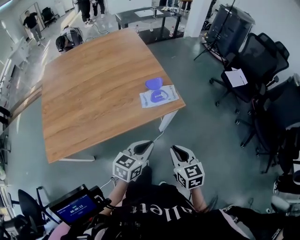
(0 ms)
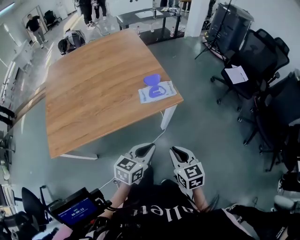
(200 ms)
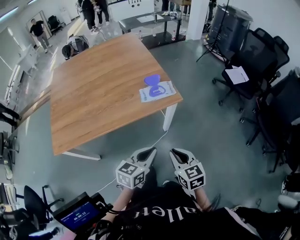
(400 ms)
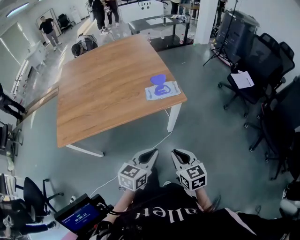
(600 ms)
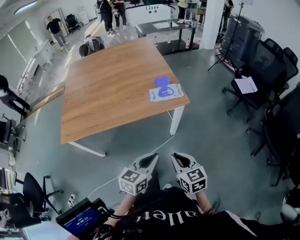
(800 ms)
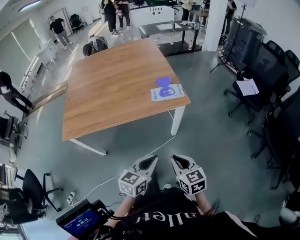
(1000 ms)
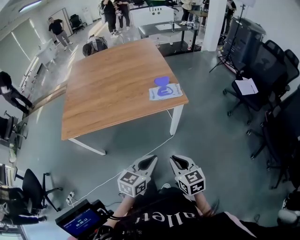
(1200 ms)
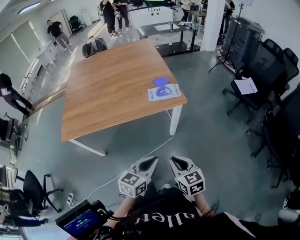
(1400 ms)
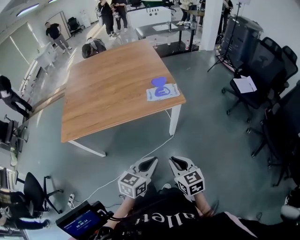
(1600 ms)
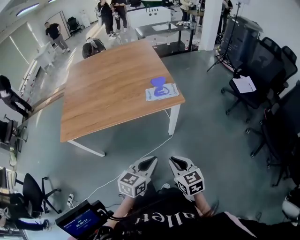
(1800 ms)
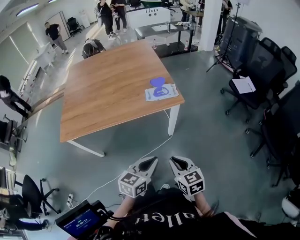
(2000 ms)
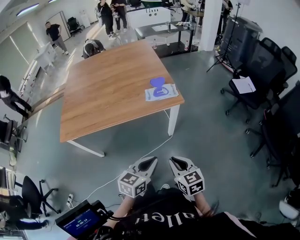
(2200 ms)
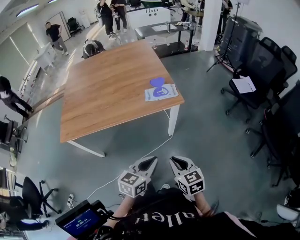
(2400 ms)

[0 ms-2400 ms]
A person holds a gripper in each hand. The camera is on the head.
0 ms to 1200 ms: Both grippers move backward, approximately 15 cm.
1200 ms to 2400 ms: There are only small adjustments of the grippers.

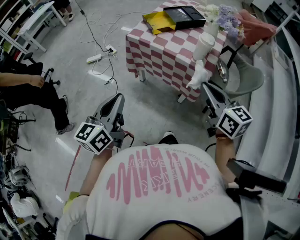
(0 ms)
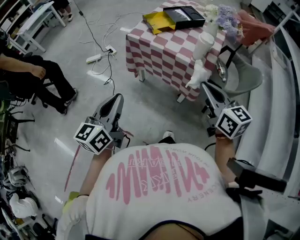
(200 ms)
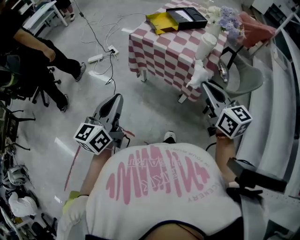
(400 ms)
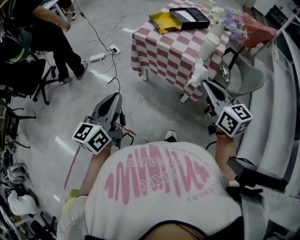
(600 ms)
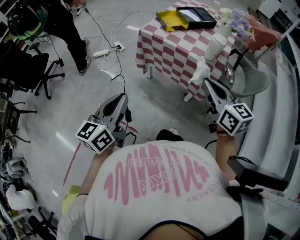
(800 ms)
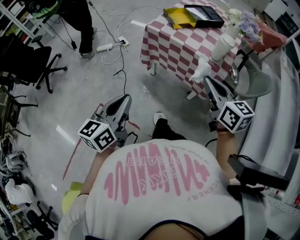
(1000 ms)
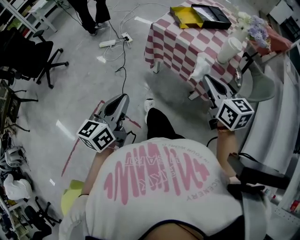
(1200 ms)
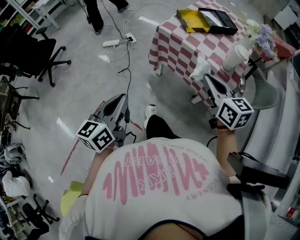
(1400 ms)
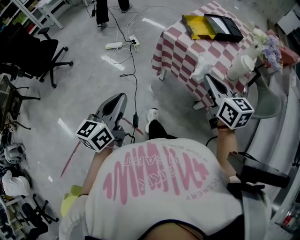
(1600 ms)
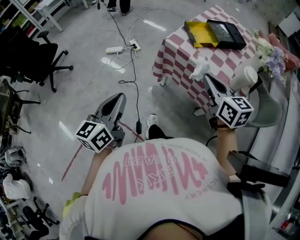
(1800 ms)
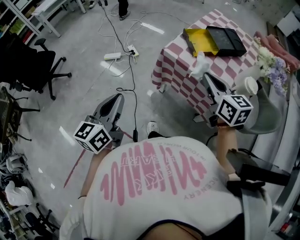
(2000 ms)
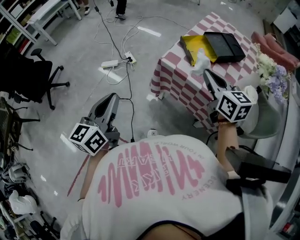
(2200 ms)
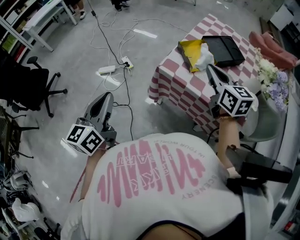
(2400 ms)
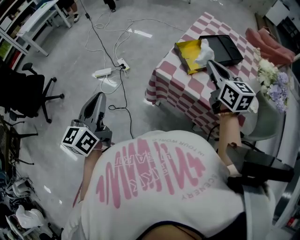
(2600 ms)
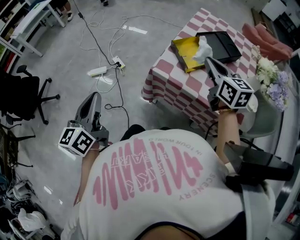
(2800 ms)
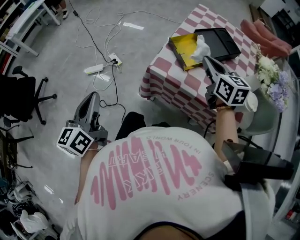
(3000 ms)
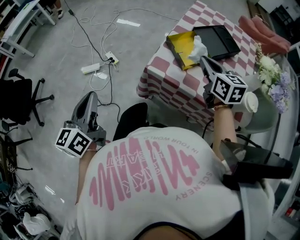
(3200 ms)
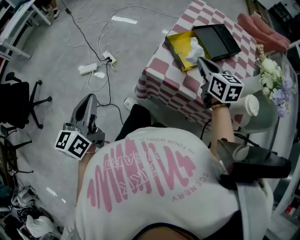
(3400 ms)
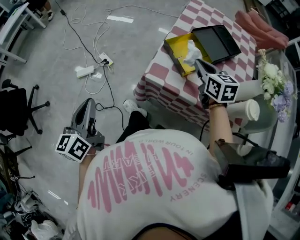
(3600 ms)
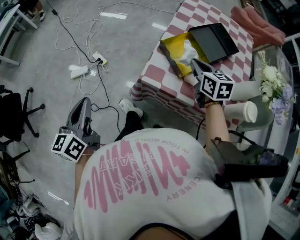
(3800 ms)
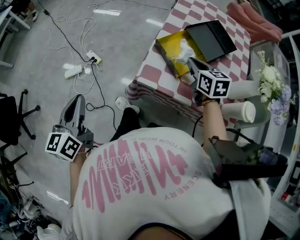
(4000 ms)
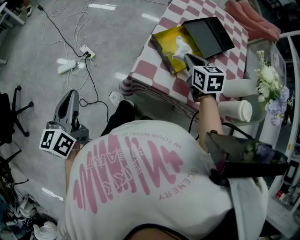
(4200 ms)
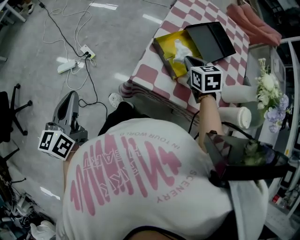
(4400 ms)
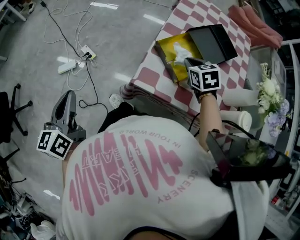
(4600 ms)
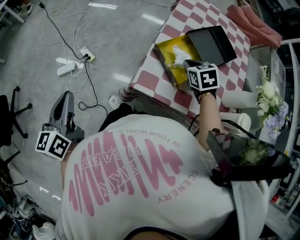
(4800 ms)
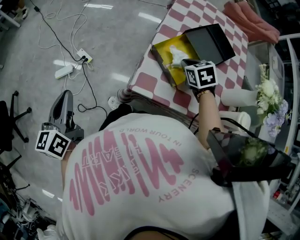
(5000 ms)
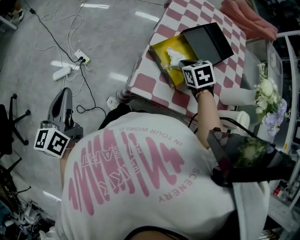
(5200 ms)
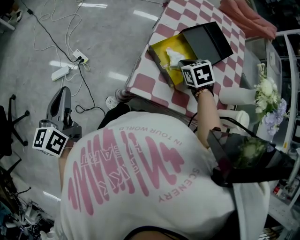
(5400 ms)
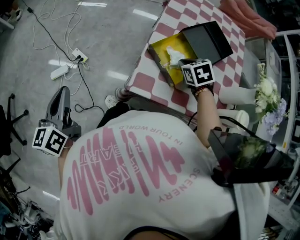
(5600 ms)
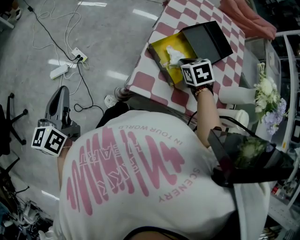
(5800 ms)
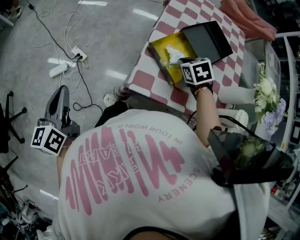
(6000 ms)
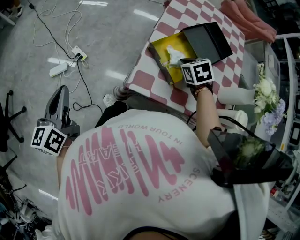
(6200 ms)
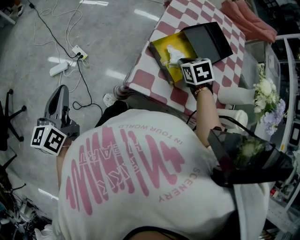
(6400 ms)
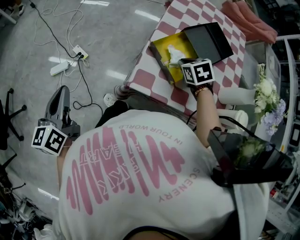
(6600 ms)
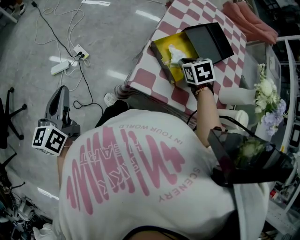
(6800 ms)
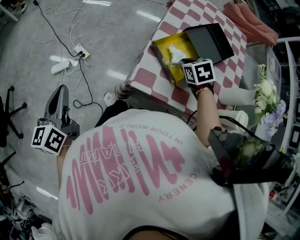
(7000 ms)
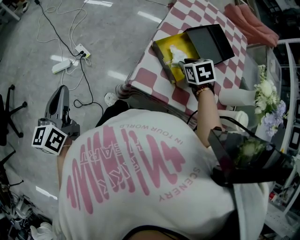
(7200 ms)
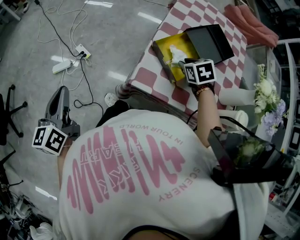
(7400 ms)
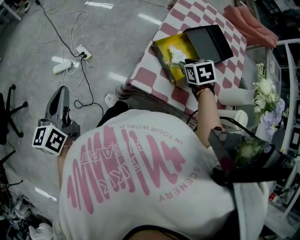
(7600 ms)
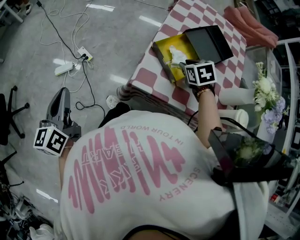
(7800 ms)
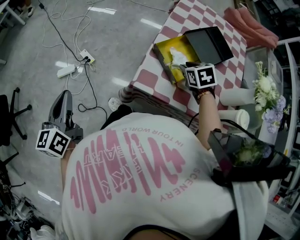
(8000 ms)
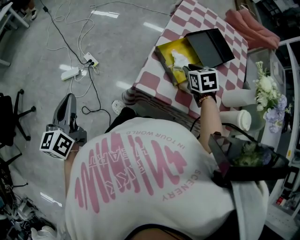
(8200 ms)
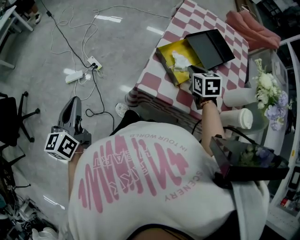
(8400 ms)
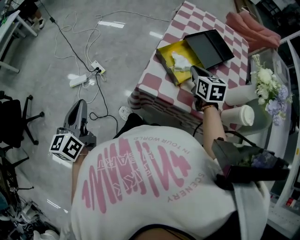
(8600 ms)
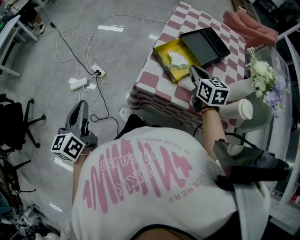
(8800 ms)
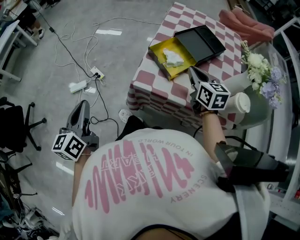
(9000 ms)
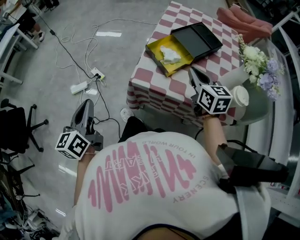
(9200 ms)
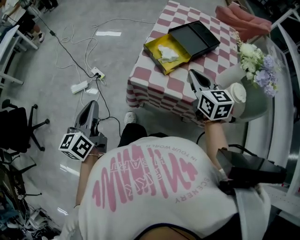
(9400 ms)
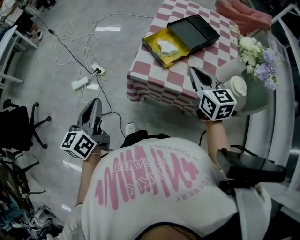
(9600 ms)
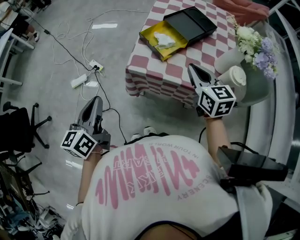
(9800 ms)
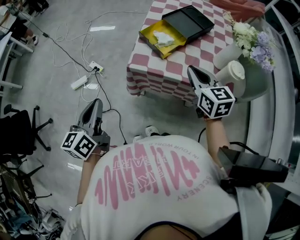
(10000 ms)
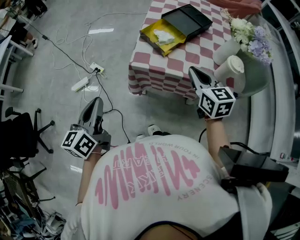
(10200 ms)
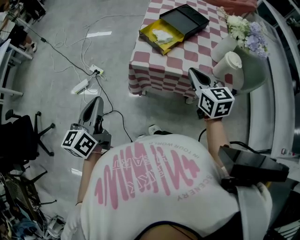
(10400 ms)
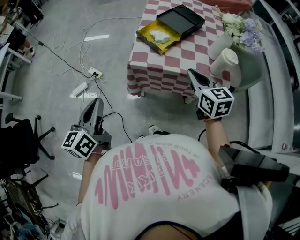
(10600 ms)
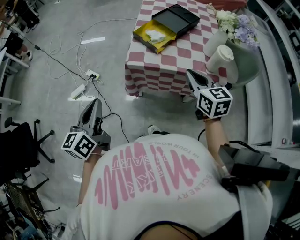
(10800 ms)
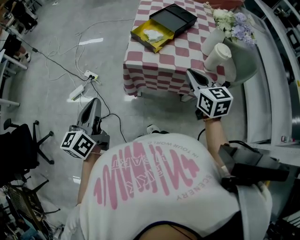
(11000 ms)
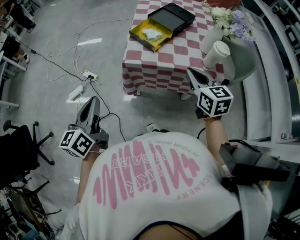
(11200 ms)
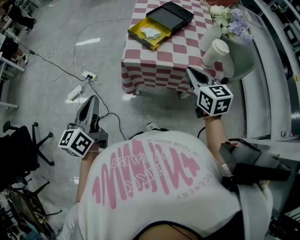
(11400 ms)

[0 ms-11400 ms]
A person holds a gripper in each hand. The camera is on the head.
0 ms to 1400 ms: The left gripper heads to the left, covering about 10 cm. Meanwhile the right gripper goes roughly 15 cm to the left and forward.
1400 ms to 2800 ms: The two grippers go some 35 cm forward.
2800 ms to 4200 ms: The right gripper heads downward and forward, covering approximately 20 cm, and swivels some 30 degrees. The left gripper moves forward and downward, some 15 cm.
4200 ms to 5600 ms: The right gripper shifts approximately 5 cm downward, and changes its angle by some 20 degrees, while the left gripper goes approximately 10 cm forward.
5600 ms to 7200 ms: The left gripper moves backward, approximately 5 cm, while the right gripper opens up.
7200 ms to 8600 ms: The left gripper shifts approximately 5 cm backward, while the right gripper is displaced upward by approximately 5 cm, and rotates approximately 30 degrees.
8600 ms to 10000 ms: The right gripper is displaced backward and upward by approximately 20 cm, while the left gripper heads backward and to the right, covering approximately 15 cm.
10000 ms to 11400 ms: The left gripper moves roughly 5 cm. The right gripper is displaced backward by about 10 cm.

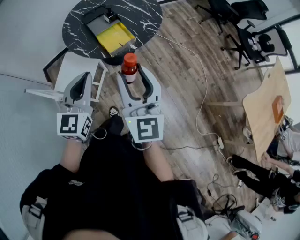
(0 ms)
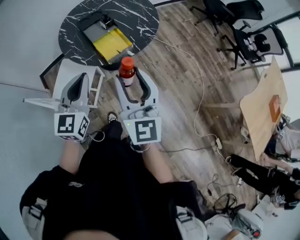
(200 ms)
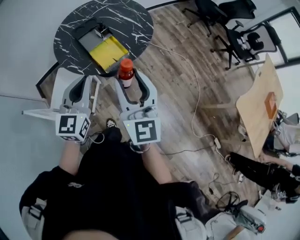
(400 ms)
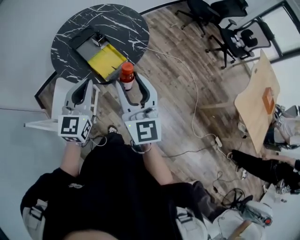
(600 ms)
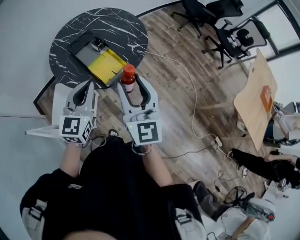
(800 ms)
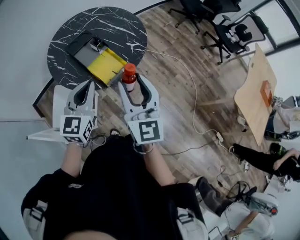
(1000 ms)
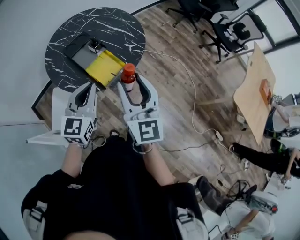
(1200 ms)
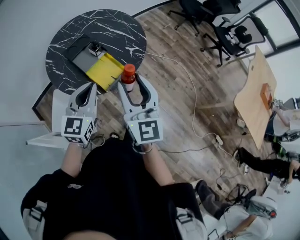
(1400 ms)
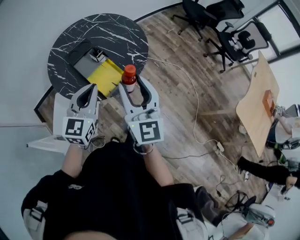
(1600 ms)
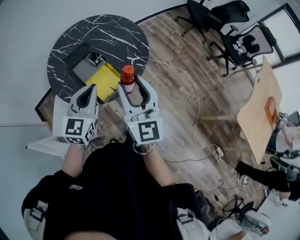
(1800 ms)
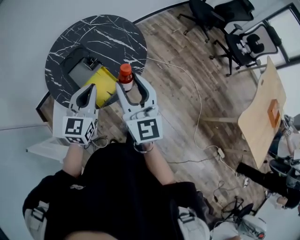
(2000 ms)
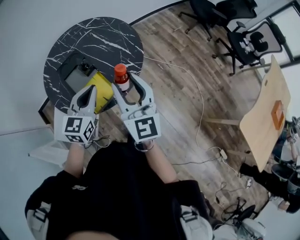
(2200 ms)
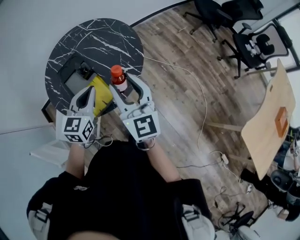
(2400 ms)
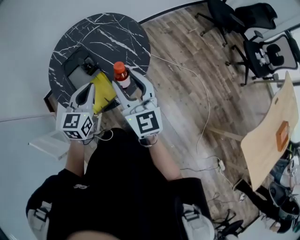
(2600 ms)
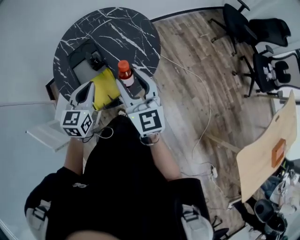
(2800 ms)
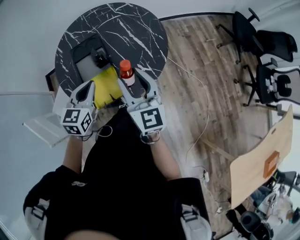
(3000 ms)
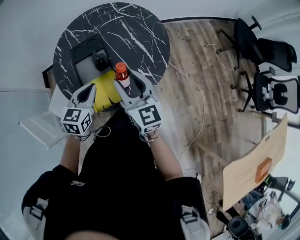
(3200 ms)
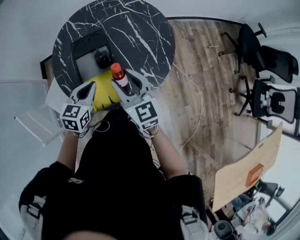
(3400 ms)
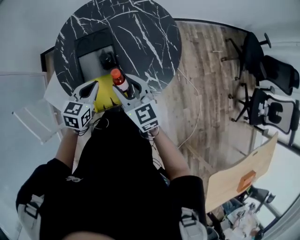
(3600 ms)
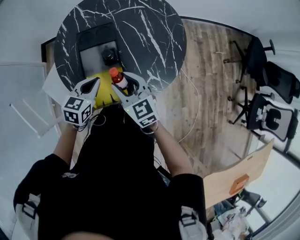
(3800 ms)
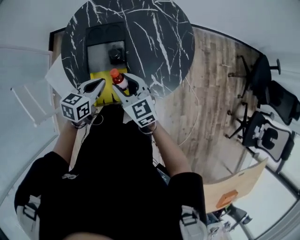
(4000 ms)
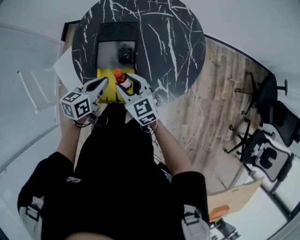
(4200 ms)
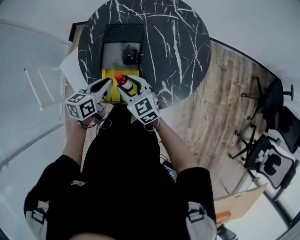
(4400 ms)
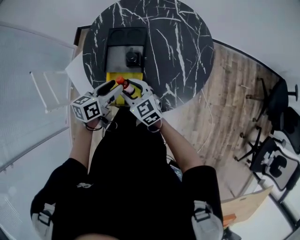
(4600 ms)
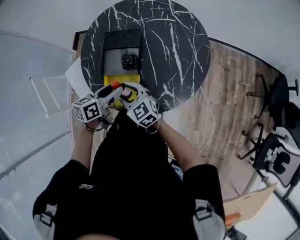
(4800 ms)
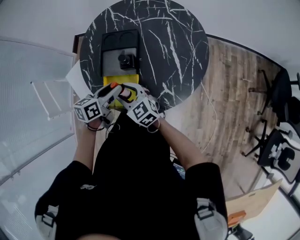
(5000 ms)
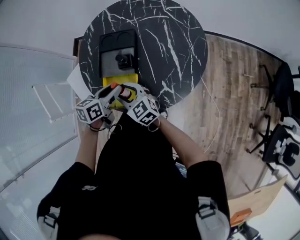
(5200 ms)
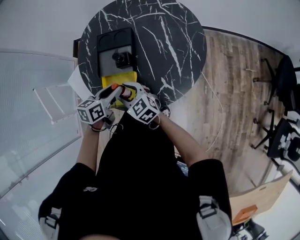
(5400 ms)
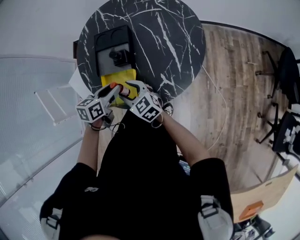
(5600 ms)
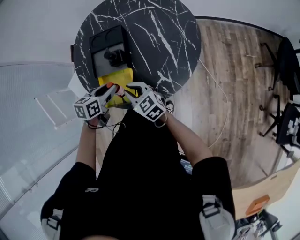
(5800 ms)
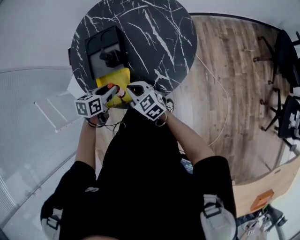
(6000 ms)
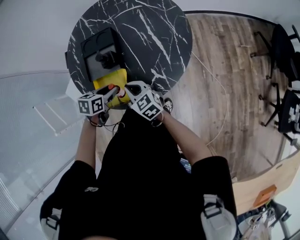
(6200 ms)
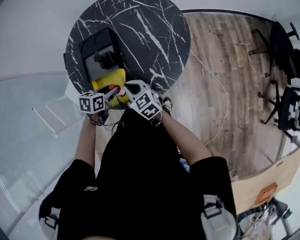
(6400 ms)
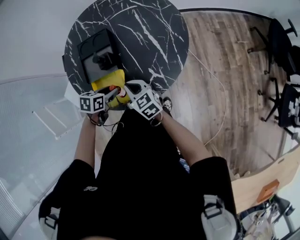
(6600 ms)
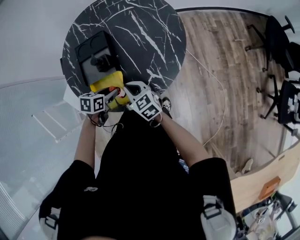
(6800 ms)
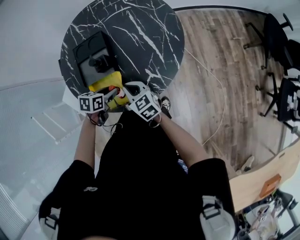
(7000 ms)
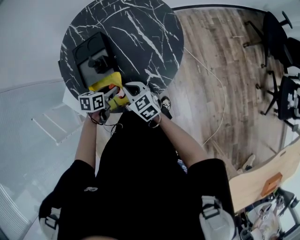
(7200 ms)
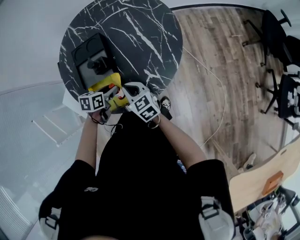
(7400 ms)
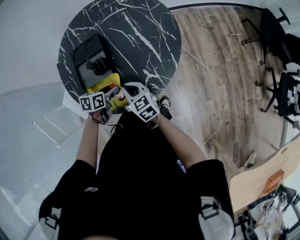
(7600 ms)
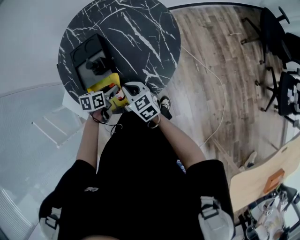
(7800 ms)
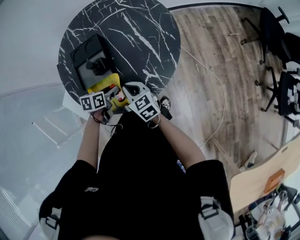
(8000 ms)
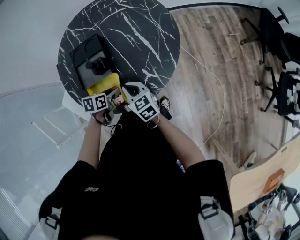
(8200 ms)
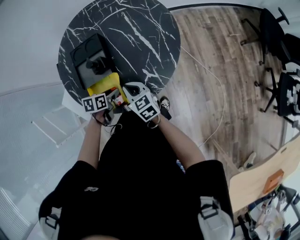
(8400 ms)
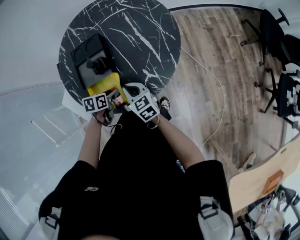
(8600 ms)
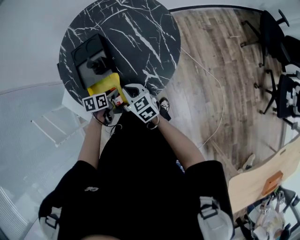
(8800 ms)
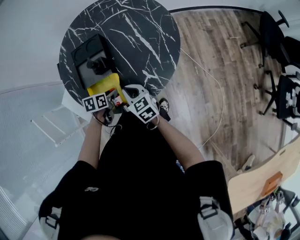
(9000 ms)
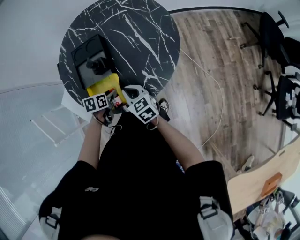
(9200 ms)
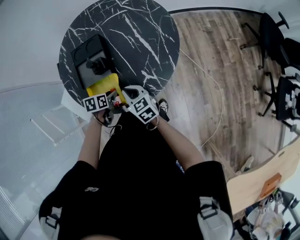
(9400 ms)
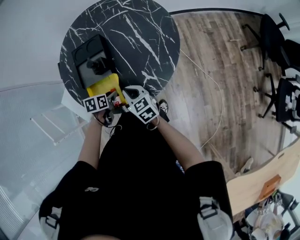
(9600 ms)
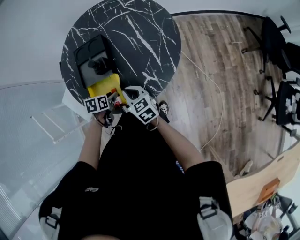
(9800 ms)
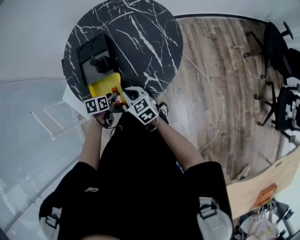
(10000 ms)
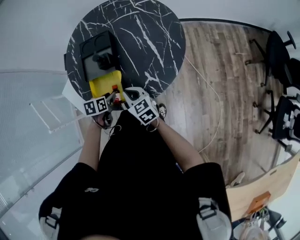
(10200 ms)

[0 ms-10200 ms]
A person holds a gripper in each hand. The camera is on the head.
0 ms to 1400 ms: Both grippers travel together forward, roughly 15 cm.
1400 ms to 3000 ms: The right gripper shifts by roughly 25 cm, and turns by about 30 degrees, while the left gripper ends up roughly 20 cm from where it was, and rotates some 30 degrees.
3000 ms to 4400 ms: The left gripper is displaced downward by about 10 cm, and changes its angle by approximately 40 degrees, while the right gripper is displaced downward by roughly 20 cm, and rotates about 50 degrees.
4400 ms to 5800 ms: The right gripper ends up roughly 5 cm from where it was, and closes up, while the left gripper shifts by roughly 5 cm, and opens its fingers.
5800 ms to 7200 ms: The right gripper shifts by roughly 5 cm; the left gripper is displaced downward by roughly 10 cm.
7200 ms to 8800 ms: The grippers move only a little.
8800 ms to 10200 ms: The grippers move only a little.
